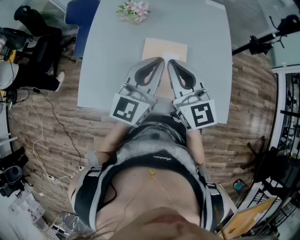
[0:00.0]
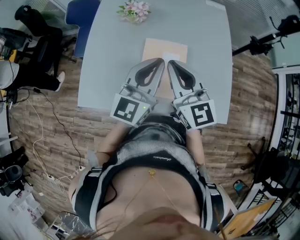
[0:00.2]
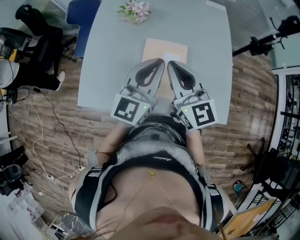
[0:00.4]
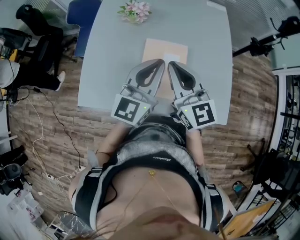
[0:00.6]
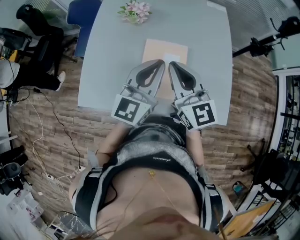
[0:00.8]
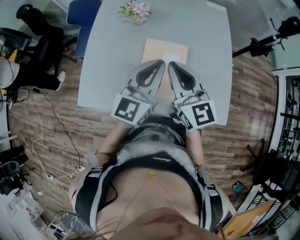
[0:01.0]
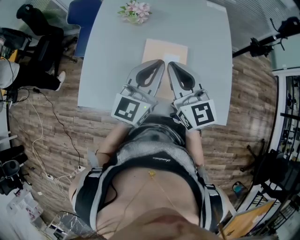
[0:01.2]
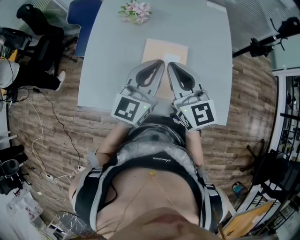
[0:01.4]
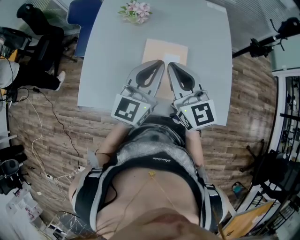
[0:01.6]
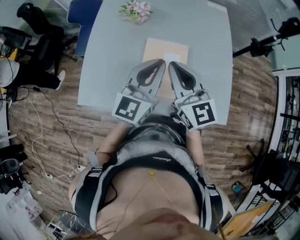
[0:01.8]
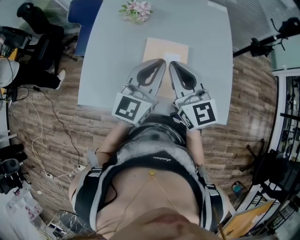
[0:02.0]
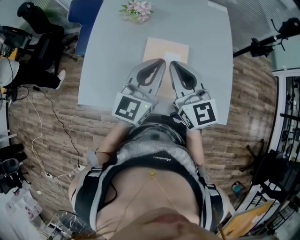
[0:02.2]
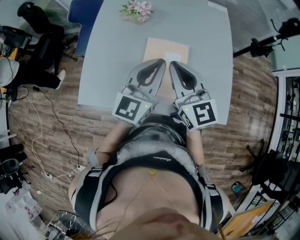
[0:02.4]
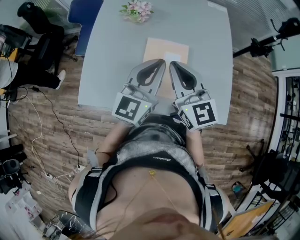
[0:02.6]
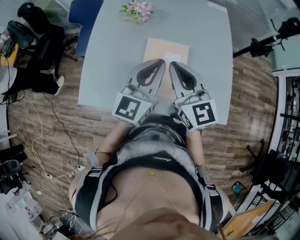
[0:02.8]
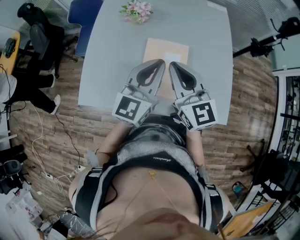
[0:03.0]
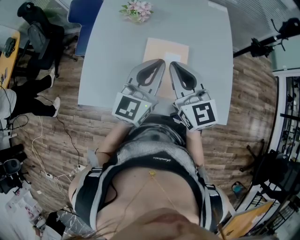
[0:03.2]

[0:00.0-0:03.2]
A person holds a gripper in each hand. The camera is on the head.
0:00.0 to 0:01.6: The two grippers keep their place.
0:01.6 to 0:03.2: Both grippers stay about where they are.

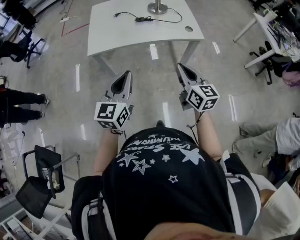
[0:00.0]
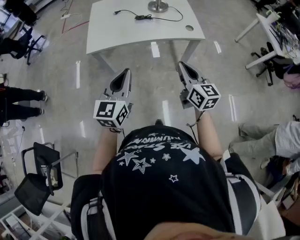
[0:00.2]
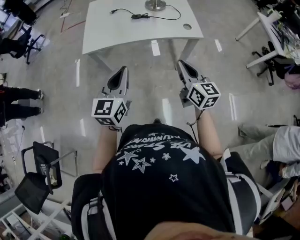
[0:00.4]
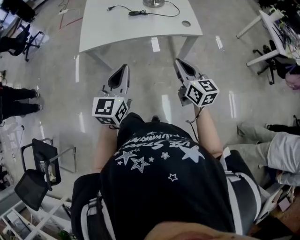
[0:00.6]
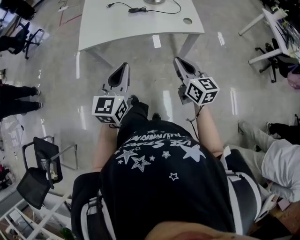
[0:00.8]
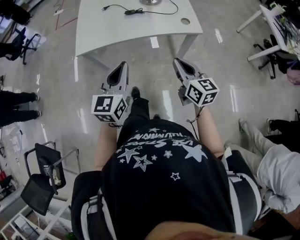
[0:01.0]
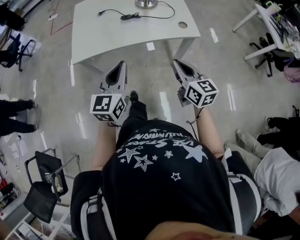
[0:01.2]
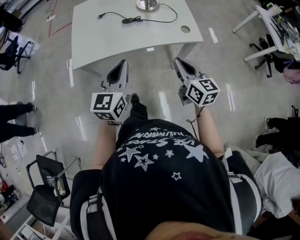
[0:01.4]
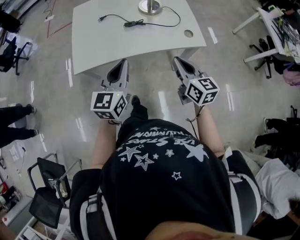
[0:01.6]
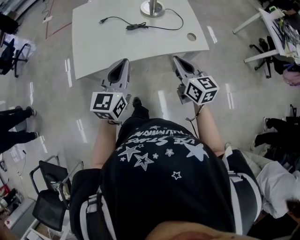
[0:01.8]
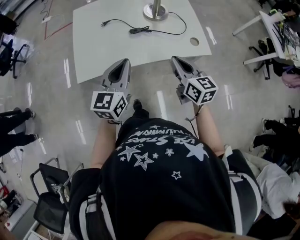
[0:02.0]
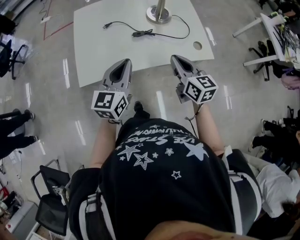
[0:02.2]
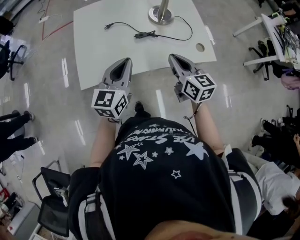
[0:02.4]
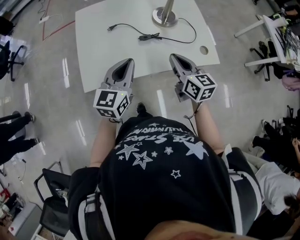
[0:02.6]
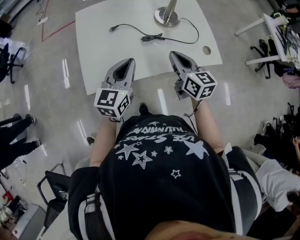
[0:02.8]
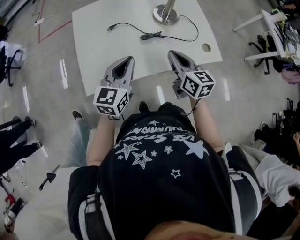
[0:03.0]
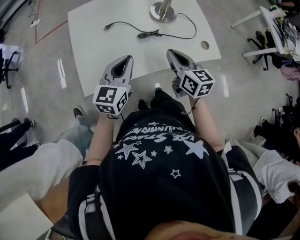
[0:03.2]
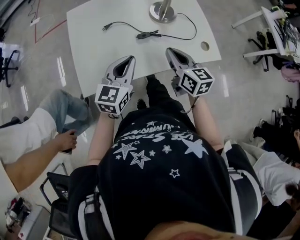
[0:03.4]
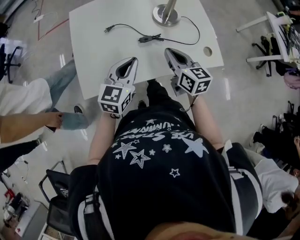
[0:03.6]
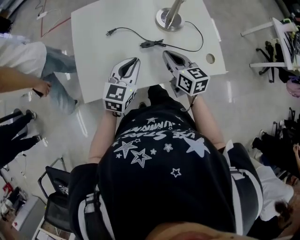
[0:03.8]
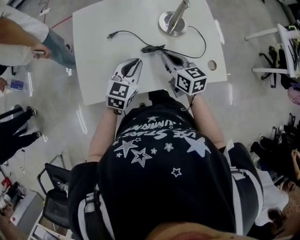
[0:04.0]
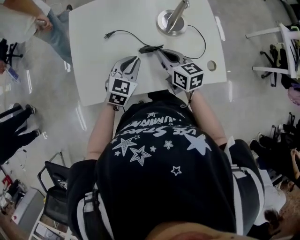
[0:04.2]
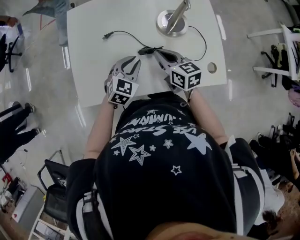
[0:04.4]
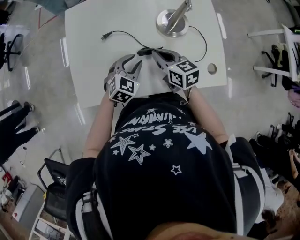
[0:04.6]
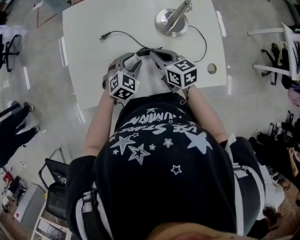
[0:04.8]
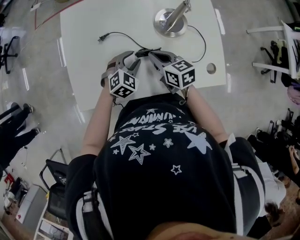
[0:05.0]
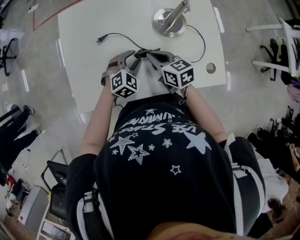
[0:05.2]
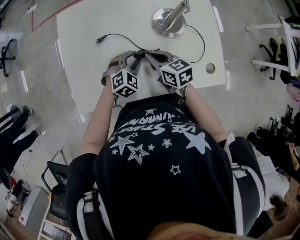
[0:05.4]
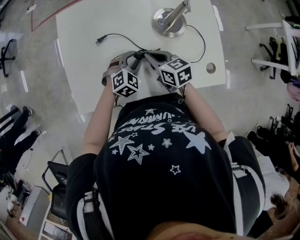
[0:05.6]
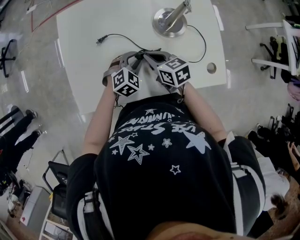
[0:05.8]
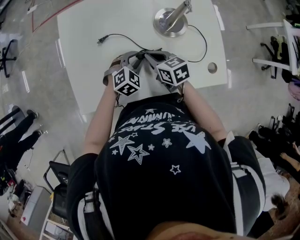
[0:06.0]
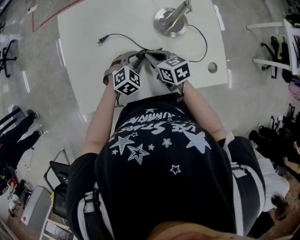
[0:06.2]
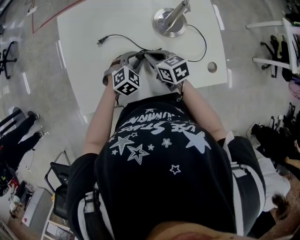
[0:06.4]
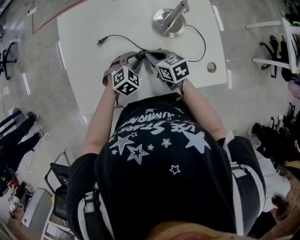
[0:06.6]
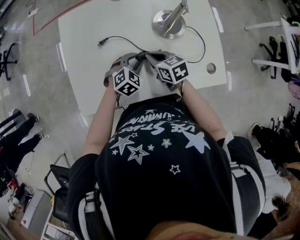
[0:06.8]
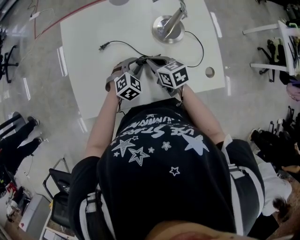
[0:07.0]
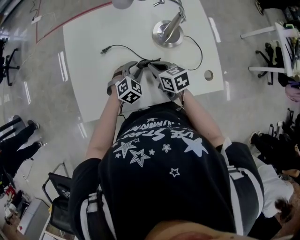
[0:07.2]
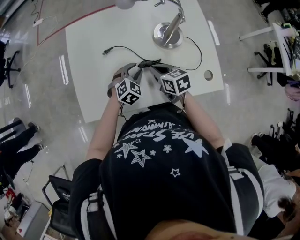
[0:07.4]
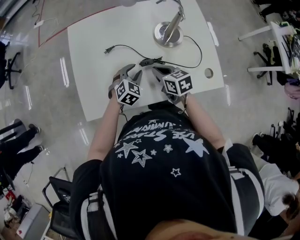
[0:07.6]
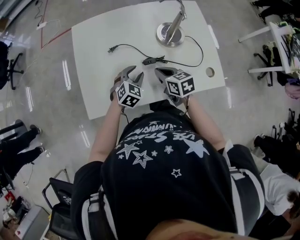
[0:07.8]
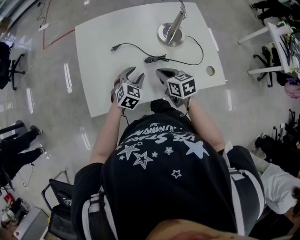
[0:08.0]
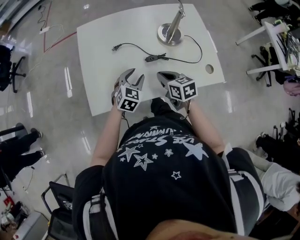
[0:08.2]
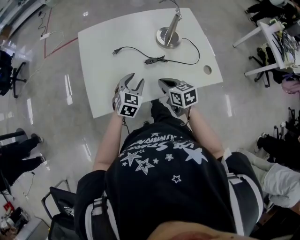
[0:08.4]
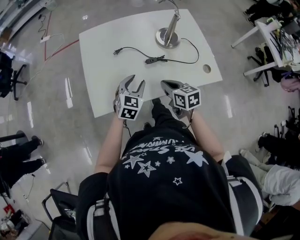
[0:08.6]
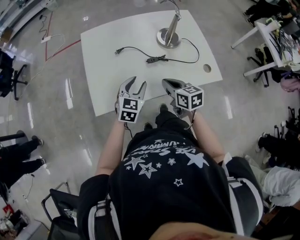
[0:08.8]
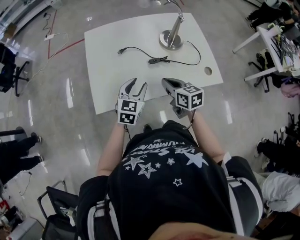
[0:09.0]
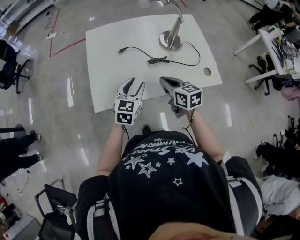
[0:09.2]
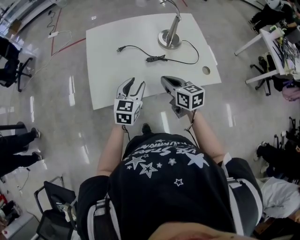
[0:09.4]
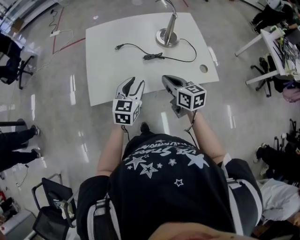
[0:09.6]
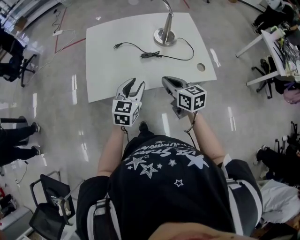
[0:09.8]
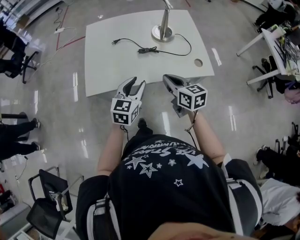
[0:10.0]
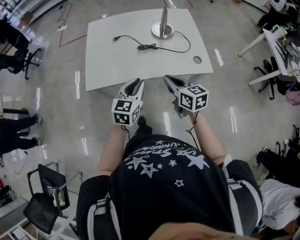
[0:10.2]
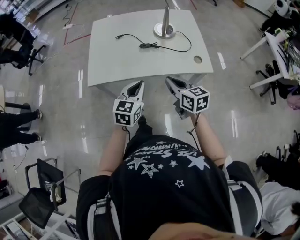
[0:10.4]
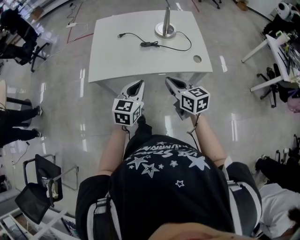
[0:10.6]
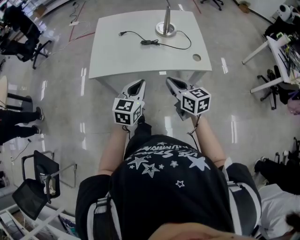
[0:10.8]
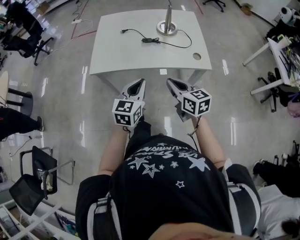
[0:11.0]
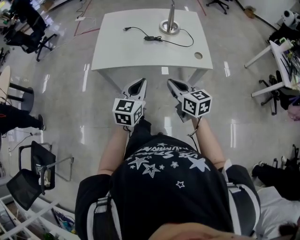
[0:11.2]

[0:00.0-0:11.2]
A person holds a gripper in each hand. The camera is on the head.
0:00.0 to 0:01.6: Both grippers move forward, approximately 20 cm.
0:01.6 to 0:03.2: Both grippers travel together forward and to the left, roughly 20 cm.
0:03.2 to 0:04.8: The left gripper heads downward and forward, covering roughly 20 cm, tilts its fingers approximately 30 degrees downward, and opens up. The right gripper goes some 15 cm forward and downward, and rotates some 30 degrees.
0:04.8 to 0:06.4: There are only small adjustments of the grippers.
0:06.4 to 0:08.0: The left gripper changes place by approximately 5 cm. The right gripper moves backward, roughly 5 cm.
0:08.0 to 0:09.6: The two grippers go roughly 15 cm backward and upward. The left gripper changes its angle by roughly 30 degrees.
0:09.6 to 0:11.2: The grippers both shift backward by roughly 20 cm. The left gripper closes its fingers.

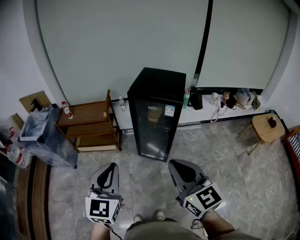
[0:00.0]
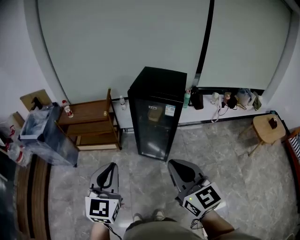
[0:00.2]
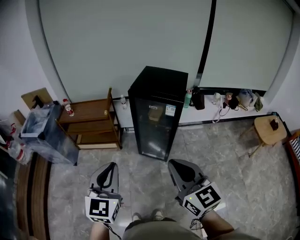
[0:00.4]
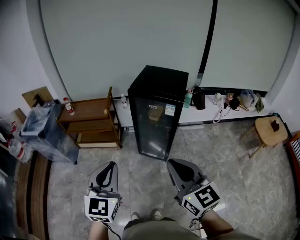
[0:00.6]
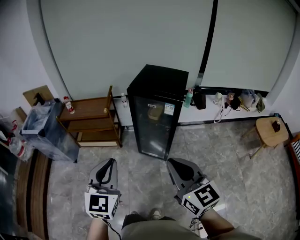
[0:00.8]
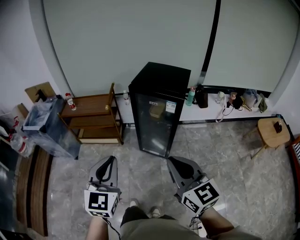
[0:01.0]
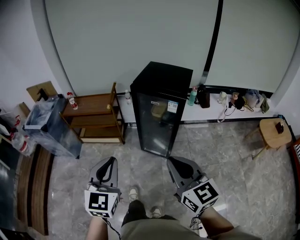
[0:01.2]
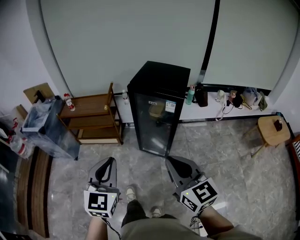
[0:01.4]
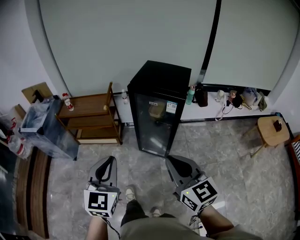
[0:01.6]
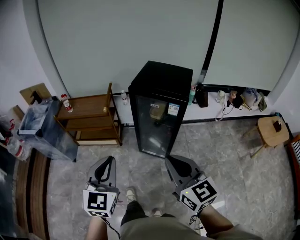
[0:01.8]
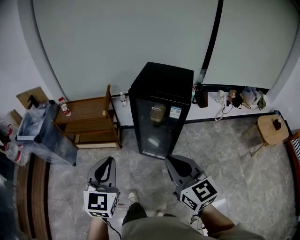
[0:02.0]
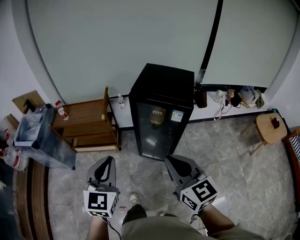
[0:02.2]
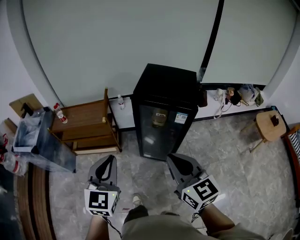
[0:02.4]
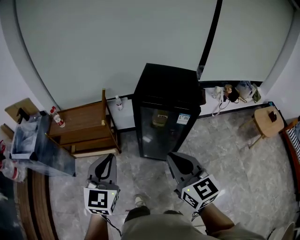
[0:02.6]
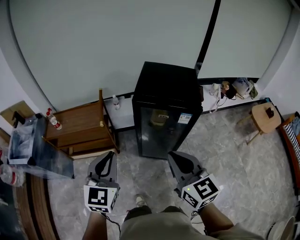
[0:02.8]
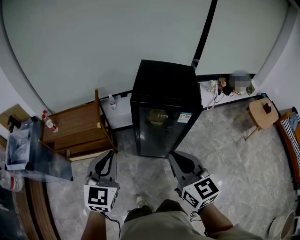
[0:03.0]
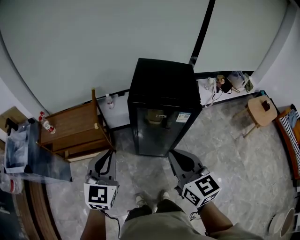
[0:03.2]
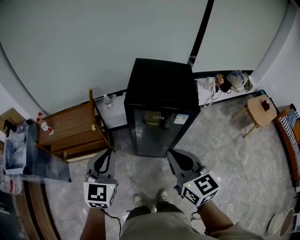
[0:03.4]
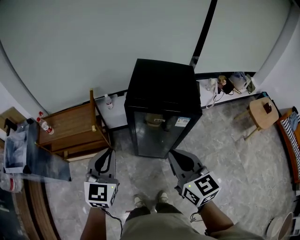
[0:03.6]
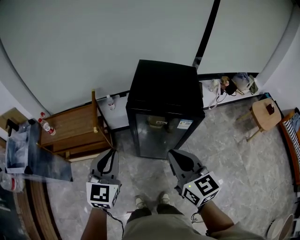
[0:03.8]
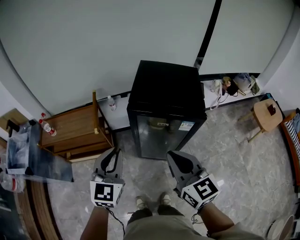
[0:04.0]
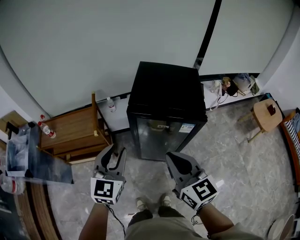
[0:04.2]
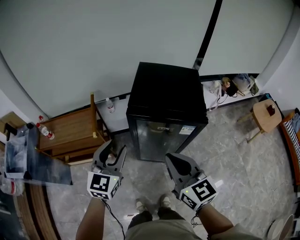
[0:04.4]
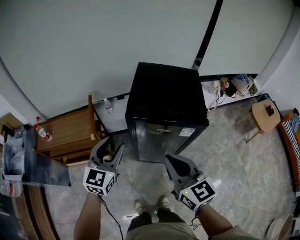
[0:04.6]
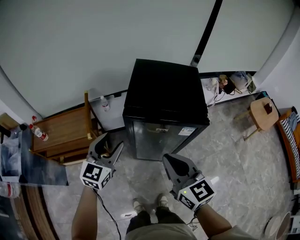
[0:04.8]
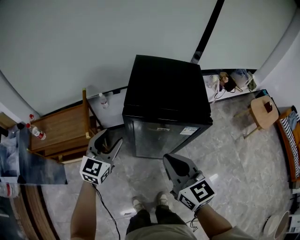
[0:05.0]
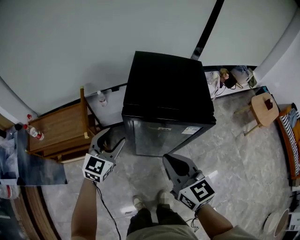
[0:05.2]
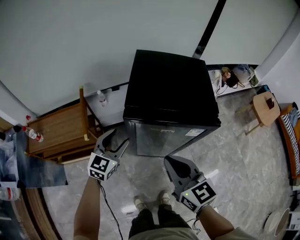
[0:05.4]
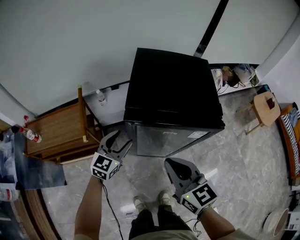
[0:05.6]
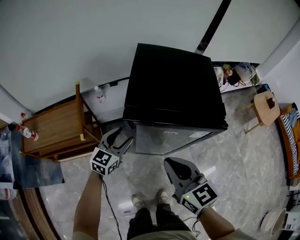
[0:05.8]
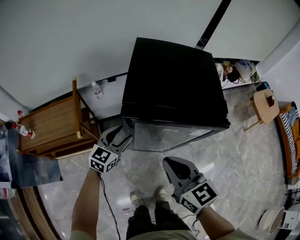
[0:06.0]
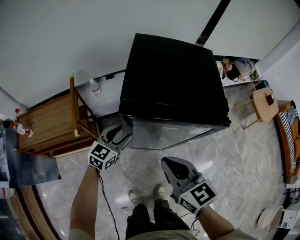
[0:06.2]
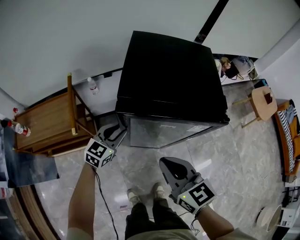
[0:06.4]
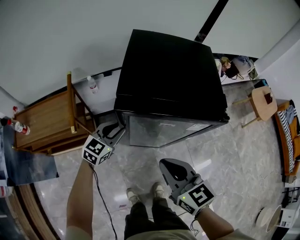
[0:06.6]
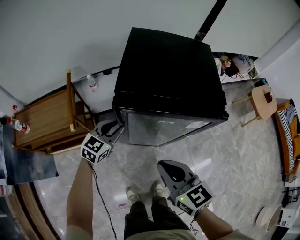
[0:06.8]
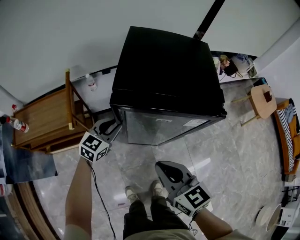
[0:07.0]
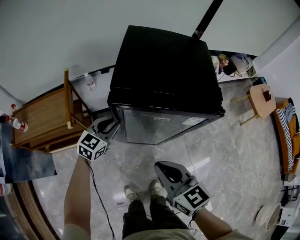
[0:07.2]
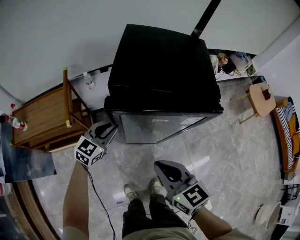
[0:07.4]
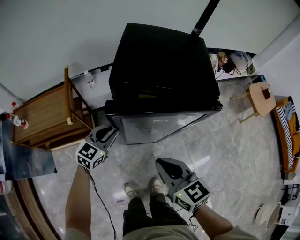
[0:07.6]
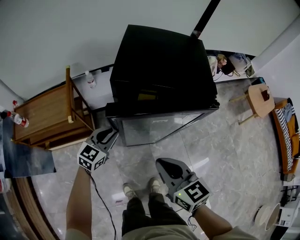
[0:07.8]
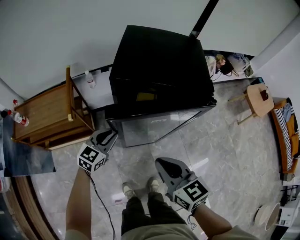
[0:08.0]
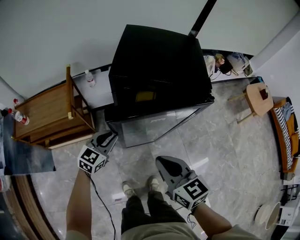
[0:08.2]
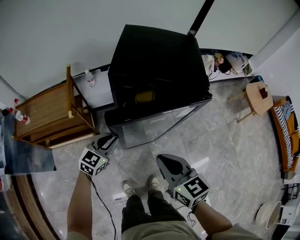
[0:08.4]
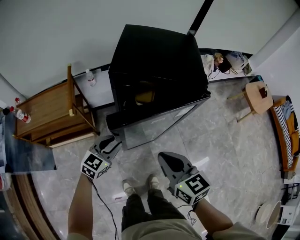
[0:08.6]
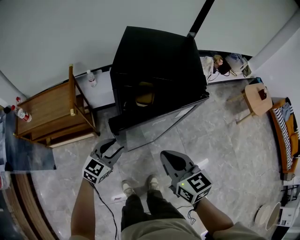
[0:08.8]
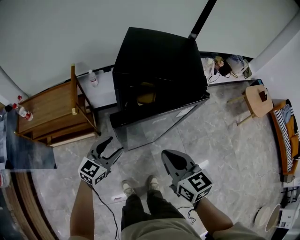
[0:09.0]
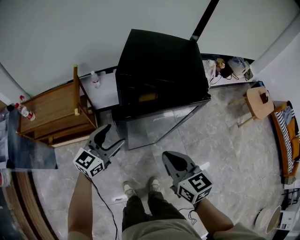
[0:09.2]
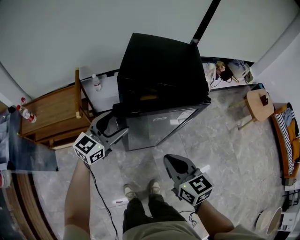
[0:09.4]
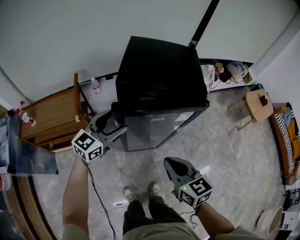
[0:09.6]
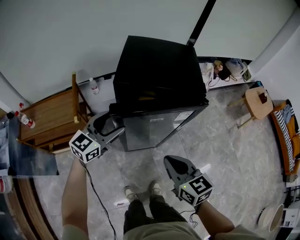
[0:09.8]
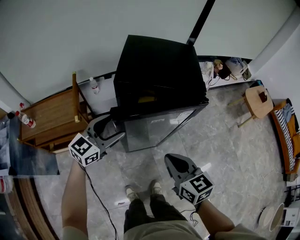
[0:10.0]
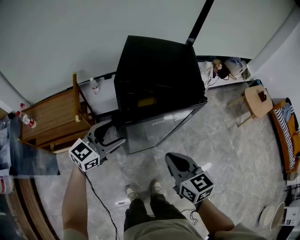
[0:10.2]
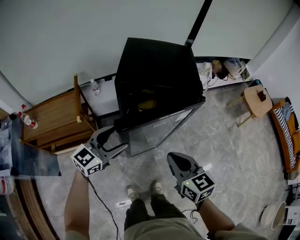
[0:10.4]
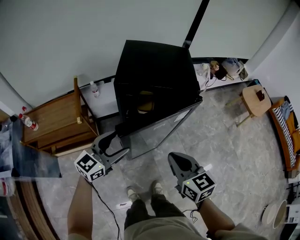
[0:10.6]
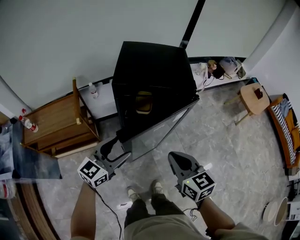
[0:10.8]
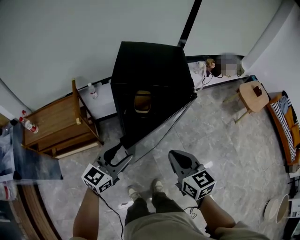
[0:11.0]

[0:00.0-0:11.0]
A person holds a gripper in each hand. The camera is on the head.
0:00.0 to 0:01.6: The left gripper ends up some 5 cm from where it was; the right gripper shifts by approximately 5 cm.
0:01.6 to 0:03.2: The two grippers go about 25 cm forward.
0:03.2 to 0:04.8: The left gripper shifts approximately 20 cm forward and downward, and opens up; the right gripper shifts roughly 10 cm forward.
0:04.8 to 0:06.2: The right gripper shifts approximately 10 cm downward and forward. The left gripper heads downward and forward, covering approximately 20 cm, and swivels roughly 20 degrees.
0:06.2 to 0:07.8: Both grippers travel together backward, approximately 5 cm. The left gripper closes up.
0:07.8 to 0:09.4: The right gripper ends up roughly 5 cm from where it was, while the left gripper is displaced upward by some 15 cm, and opens up.
0:09.4 to 0:11.0: The left gripper goes some 10 cm backward; the right gripper changes place by approximately 5 cm.
